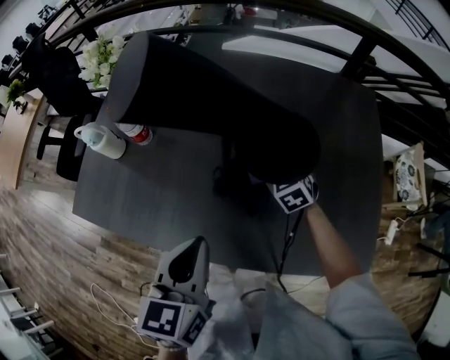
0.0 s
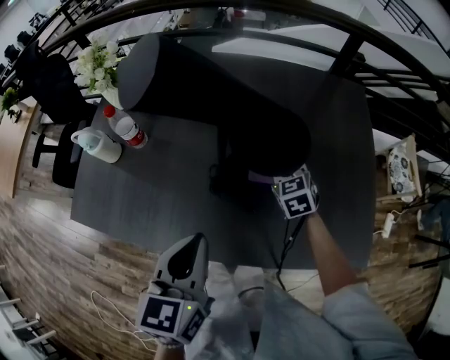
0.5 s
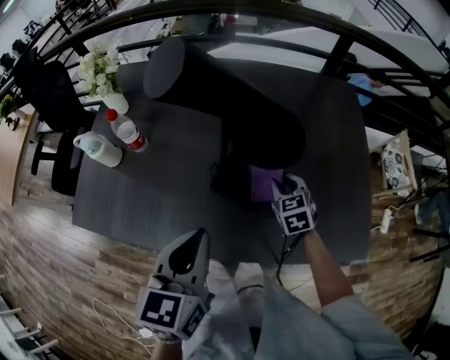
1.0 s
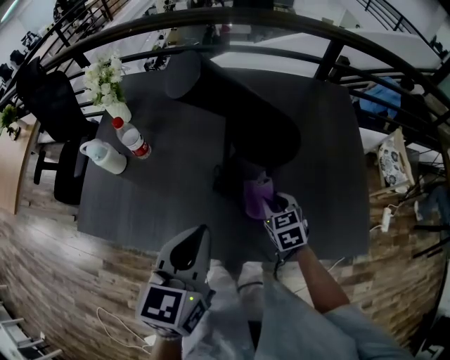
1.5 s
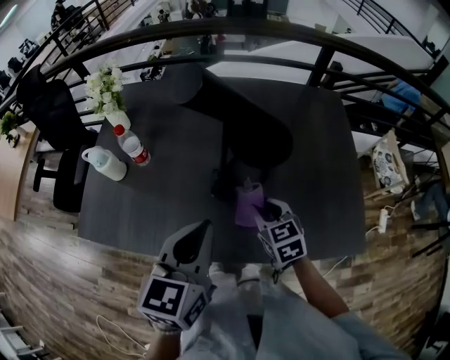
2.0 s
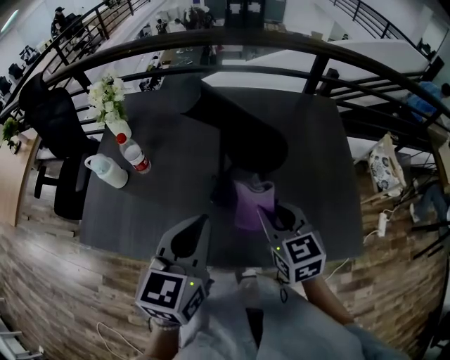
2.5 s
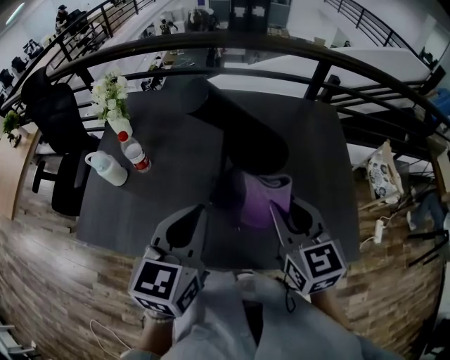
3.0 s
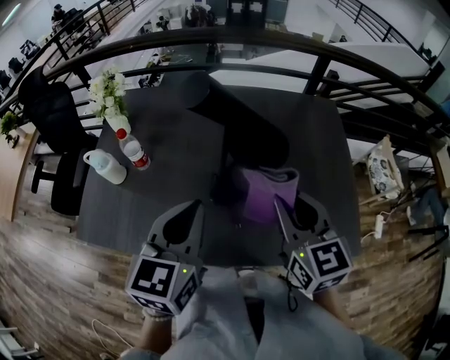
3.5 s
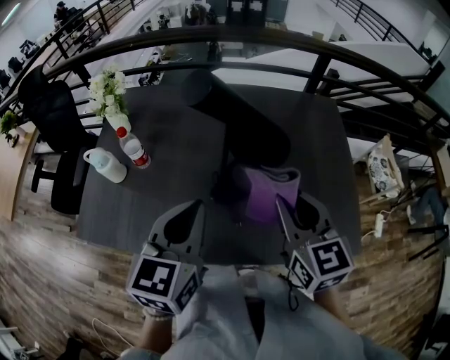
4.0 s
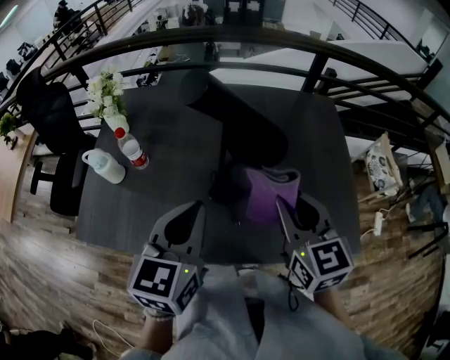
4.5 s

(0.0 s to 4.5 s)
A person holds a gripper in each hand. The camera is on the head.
0.0 s - 2.0 s: The left gripper moves upward, roughly 5 cm. The right gripper heads backward and upward, covering approximately 15 cm, and changes its angle by approximately 20 degrees.
2.0 s - 4.5 s: The right gripper goes about 20 cm upward, and swivels roughly 20 degrees.

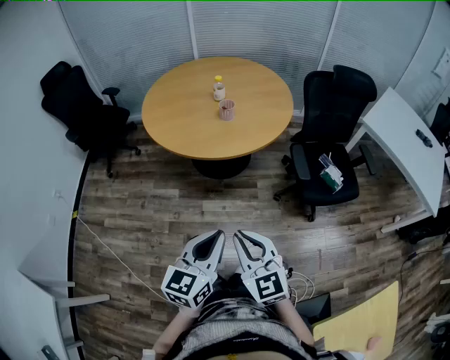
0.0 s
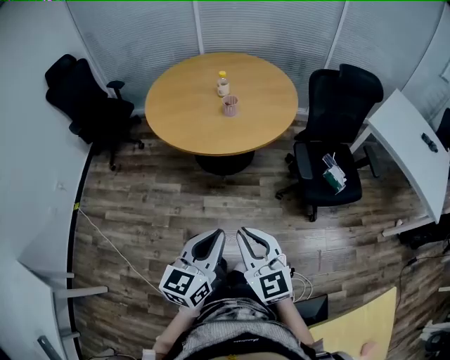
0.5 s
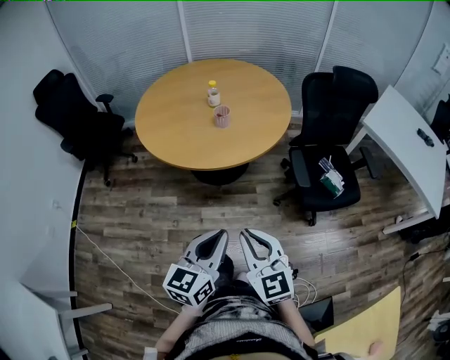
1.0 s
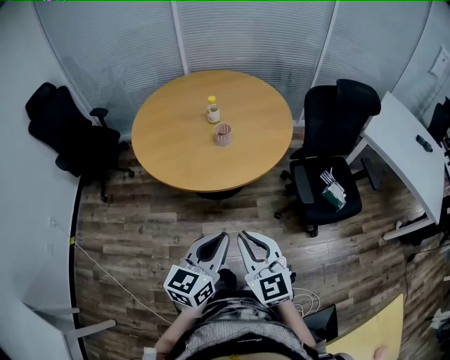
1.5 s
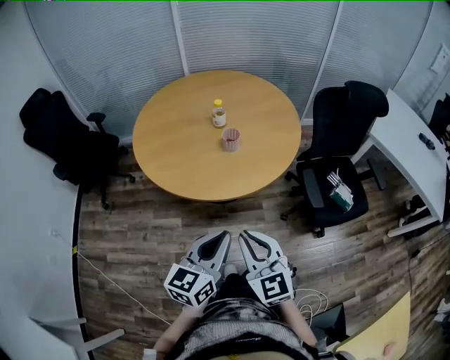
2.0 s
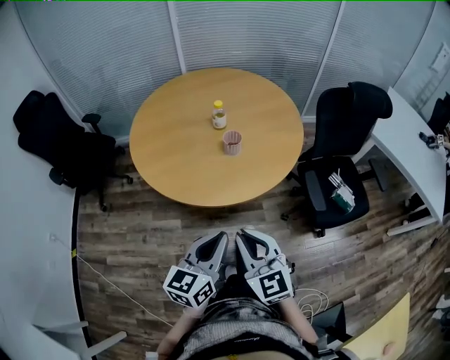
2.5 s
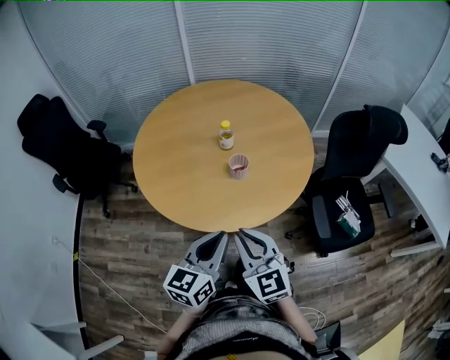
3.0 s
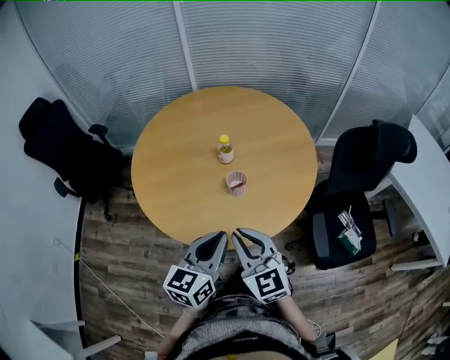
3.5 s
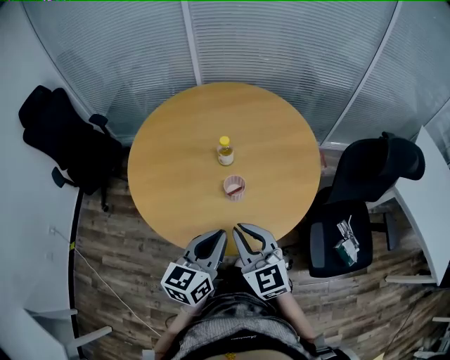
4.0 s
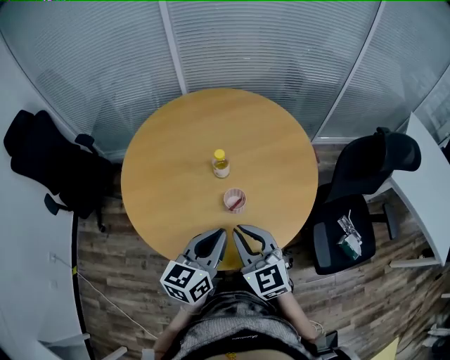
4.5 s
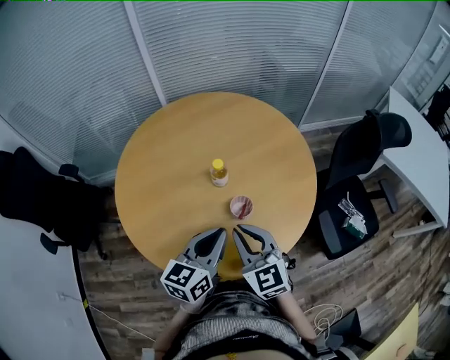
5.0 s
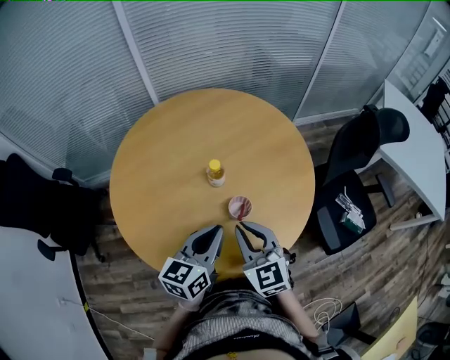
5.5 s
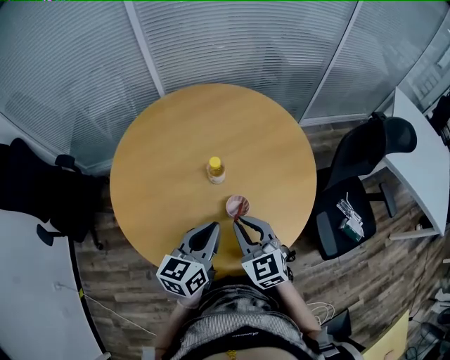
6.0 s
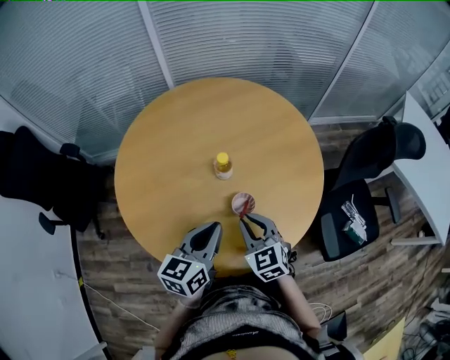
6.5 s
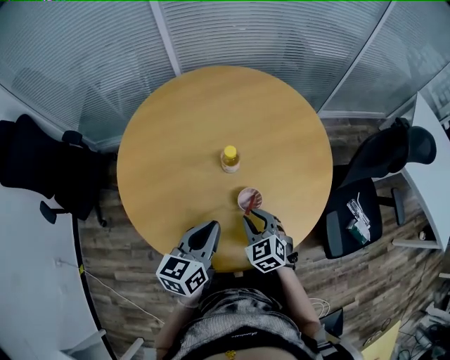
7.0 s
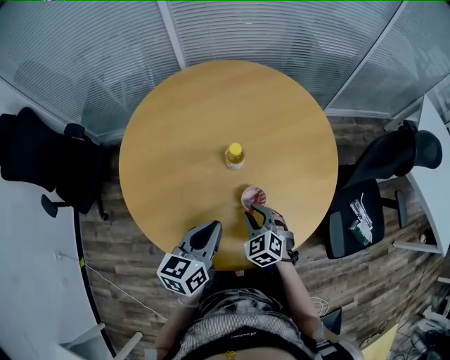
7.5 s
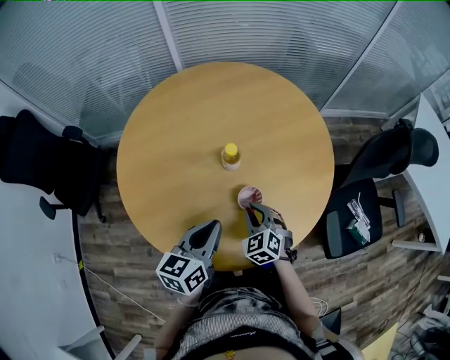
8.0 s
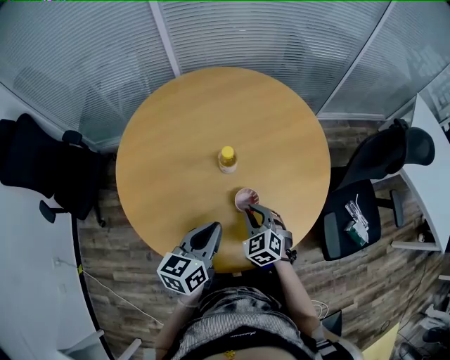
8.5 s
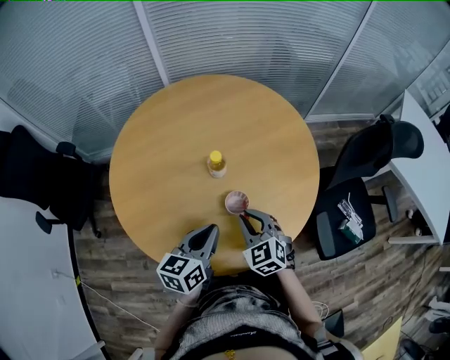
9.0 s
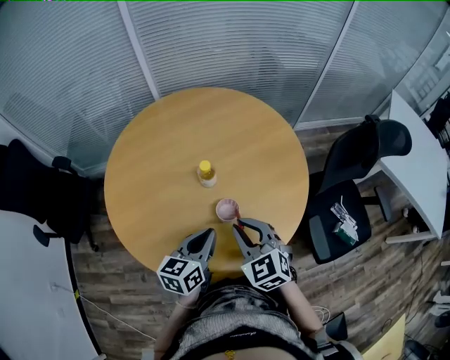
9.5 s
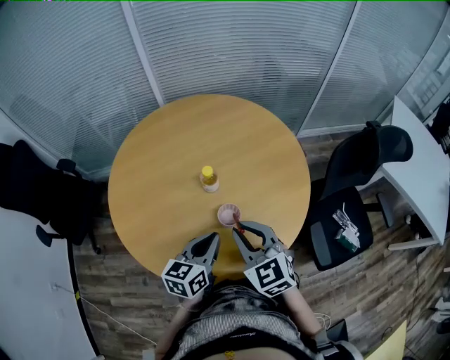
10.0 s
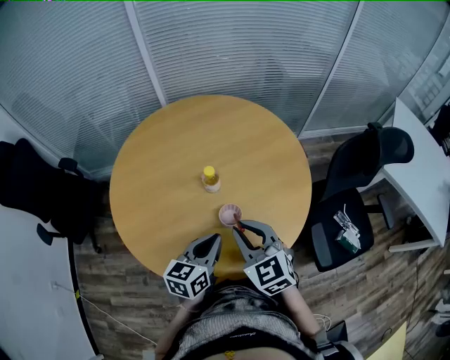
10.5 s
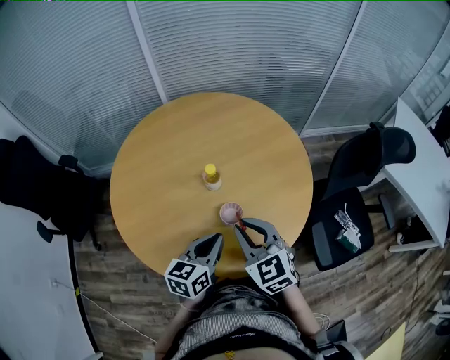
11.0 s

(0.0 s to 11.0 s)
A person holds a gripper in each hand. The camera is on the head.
0.0 s - 2.0 s: Both grippers move forward, some 20 cm.
2.0 s - 3.5 s: The grippers both shift forward by about 25 cm.
3.5 s - 5.5 s: The left gripper travels forward and to the left by about 20 cm. Meanwhile the right gripper travels forward by approximately 15 cm.
5.5 s - 7.5 s: The right gripper moves downward, roughly 15 cm, and rotates roughly 30 degrees; the left gripper moves some 5 cm.
7.5 s - 9.0 s: The right gripper travels upward by some 10 cm.
9.0 s - 11.0 s: The right gripper shifts roughly 10 cm upward.

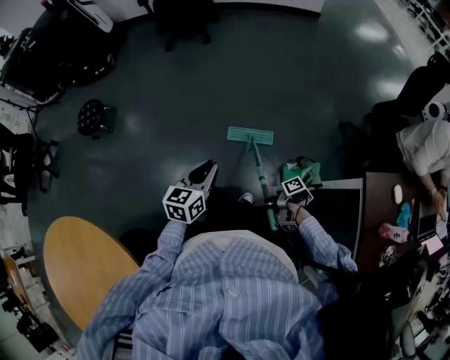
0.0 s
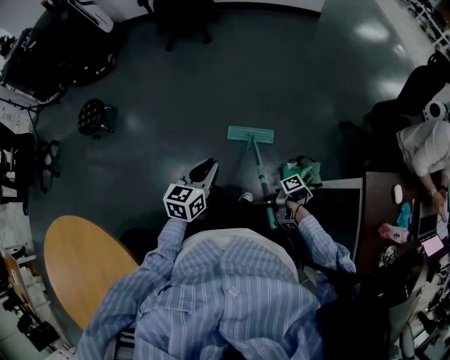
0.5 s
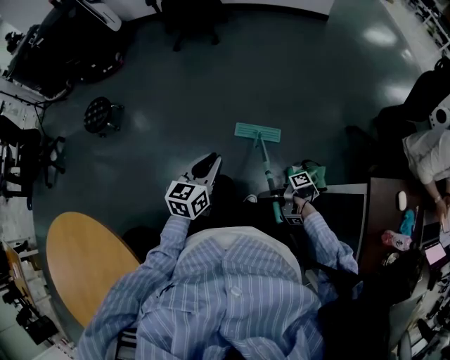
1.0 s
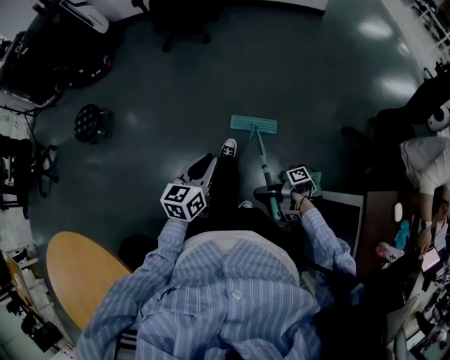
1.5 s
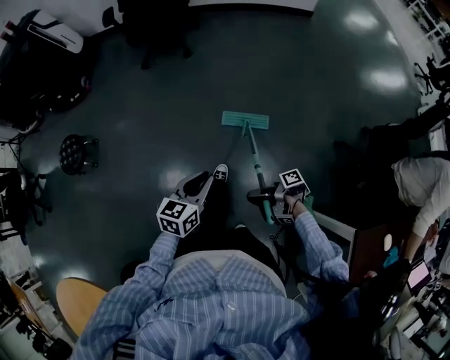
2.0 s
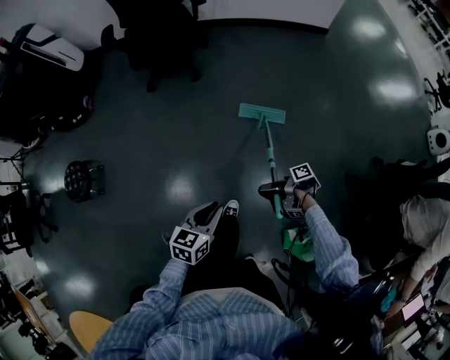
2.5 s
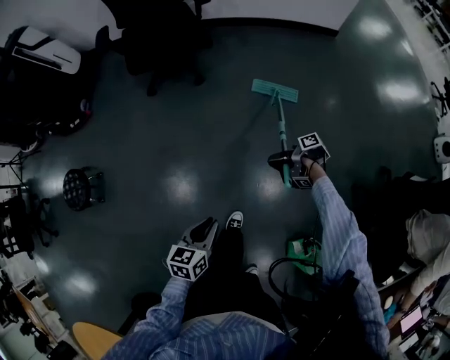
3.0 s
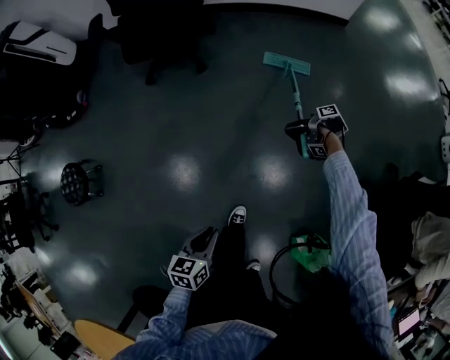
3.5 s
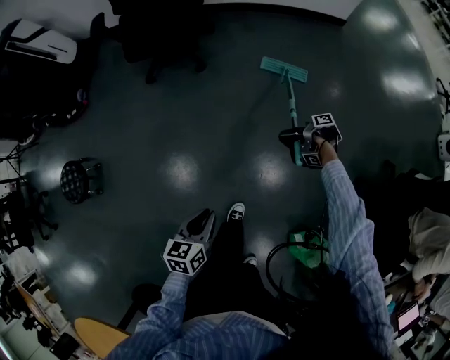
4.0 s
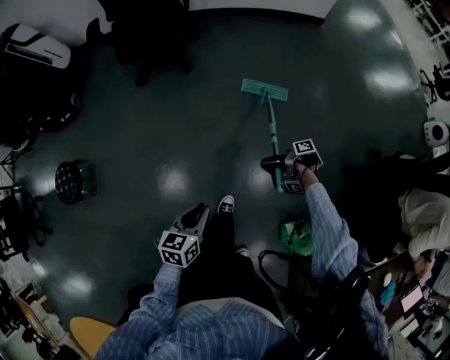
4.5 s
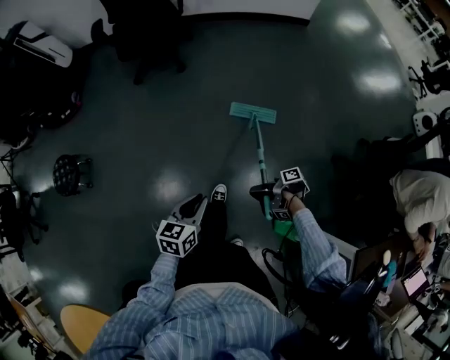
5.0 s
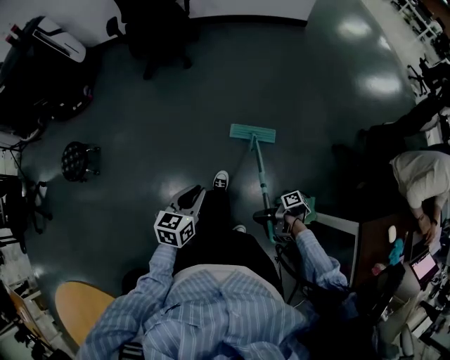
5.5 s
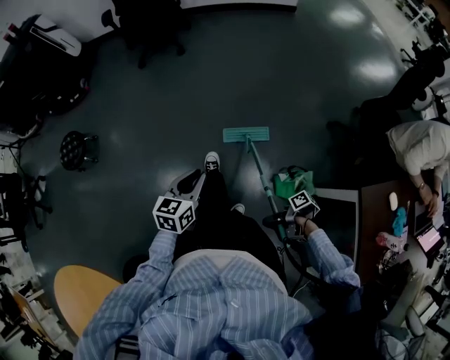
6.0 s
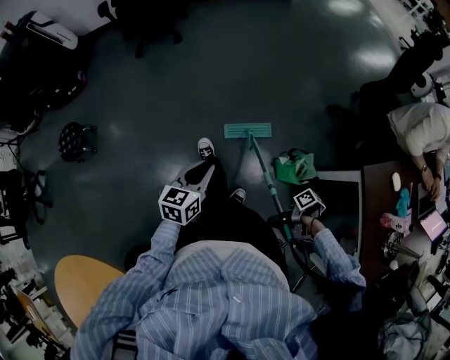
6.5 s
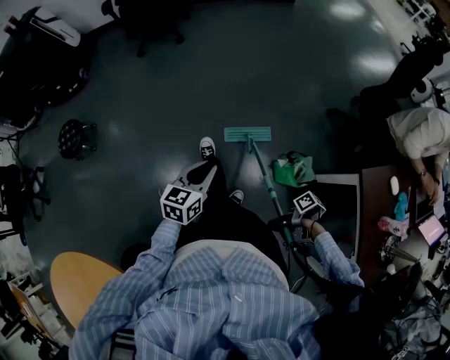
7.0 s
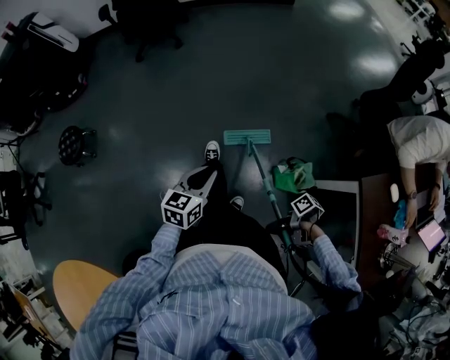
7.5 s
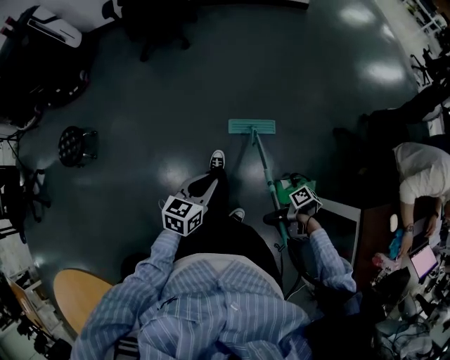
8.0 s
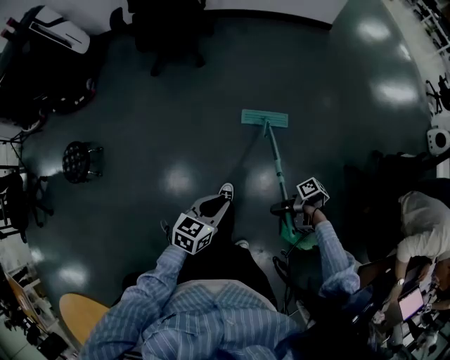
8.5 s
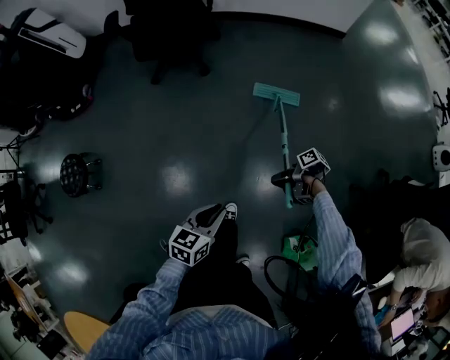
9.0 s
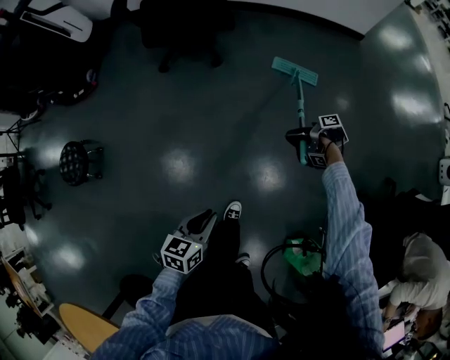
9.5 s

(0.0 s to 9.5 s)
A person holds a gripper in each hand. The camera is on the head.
0.0 s - 2.0 s: The left gripper shifts by about 30 cm.
2.0 s - 4.0 s: The left gripper moves roughly 25 cm.
4.0 s - 5.5 s: The left gripper shifts by about 30 cm.
5.5 s - 7.5 s: The left gripper changes place by approximately 15 cm.
7.5 s - 9.5 s: The left gripper changes place by about 40 cm, and swivels approximately 20 degrees.

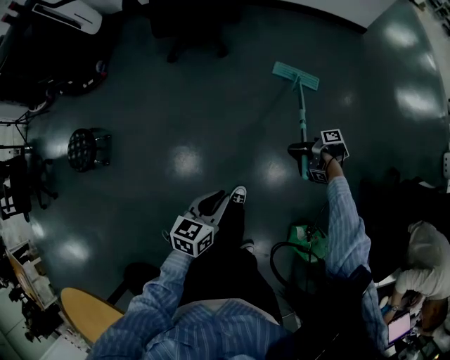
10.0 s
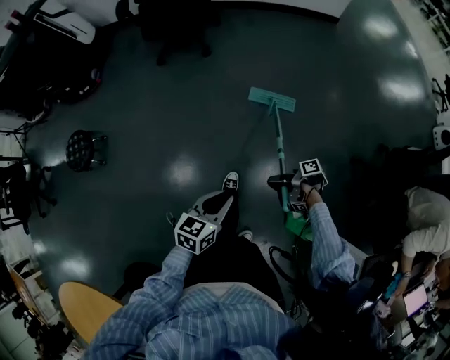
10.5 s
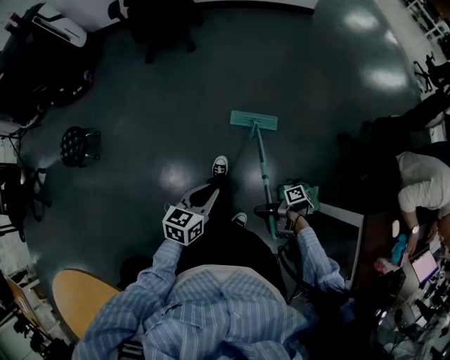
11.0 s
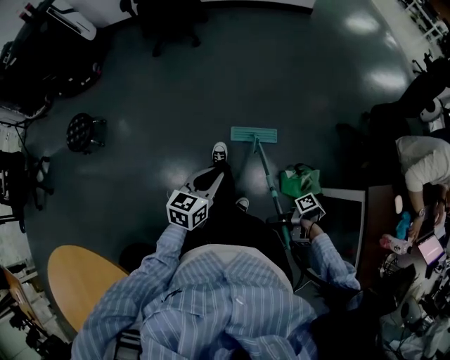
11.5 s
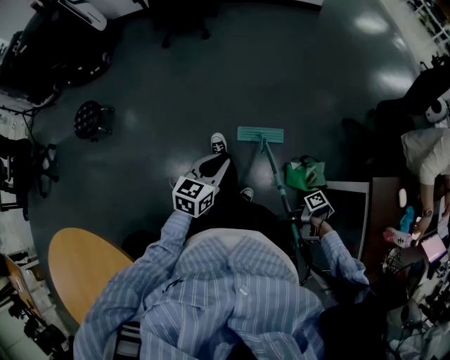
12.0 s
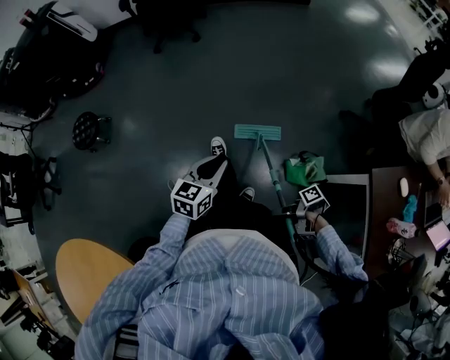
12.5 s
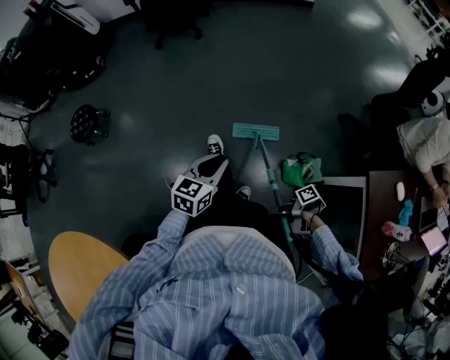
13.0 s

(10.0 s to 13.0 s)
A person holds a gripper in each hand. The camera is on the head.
10.0 s - 11.5 s: The left gripper ends up approximately 40 cm from where it was.
